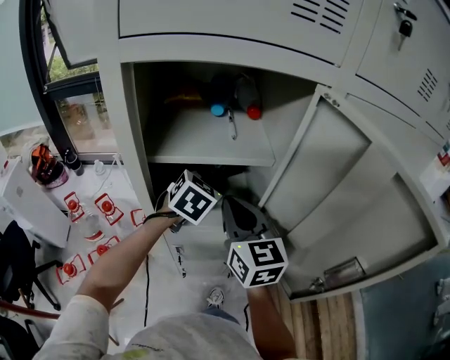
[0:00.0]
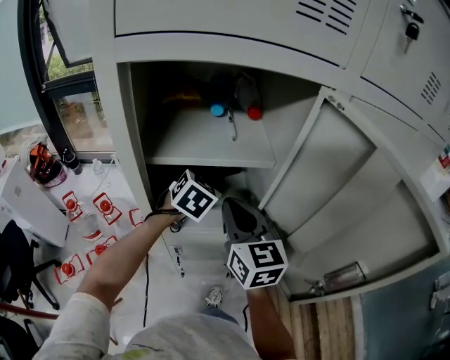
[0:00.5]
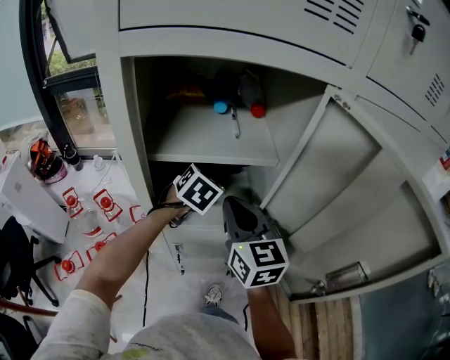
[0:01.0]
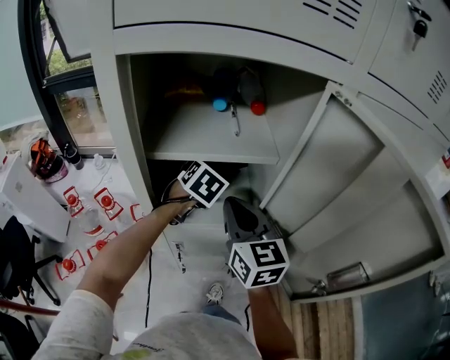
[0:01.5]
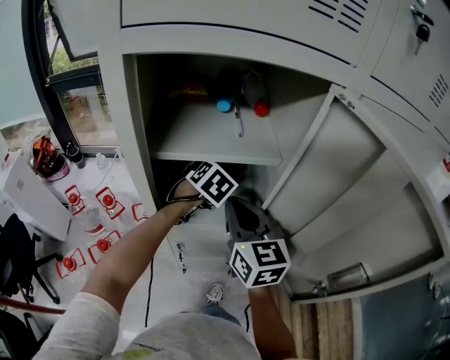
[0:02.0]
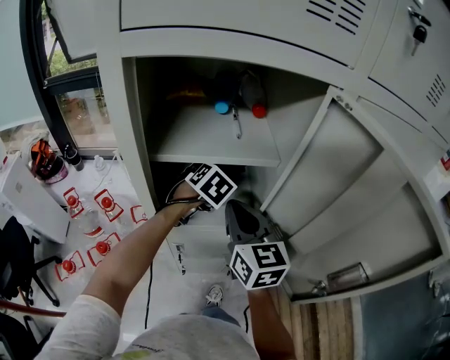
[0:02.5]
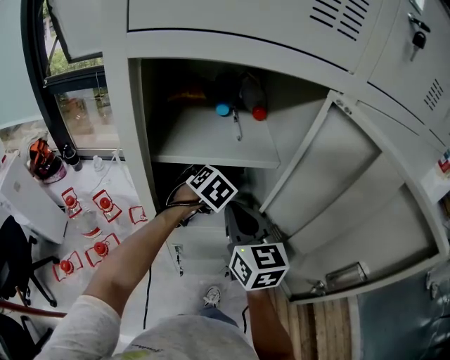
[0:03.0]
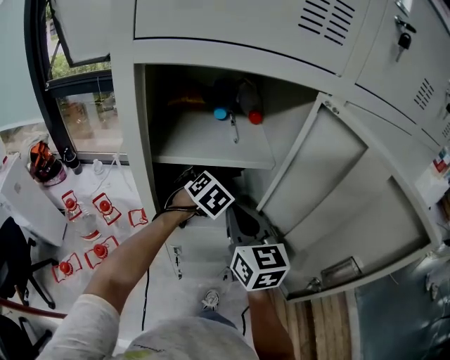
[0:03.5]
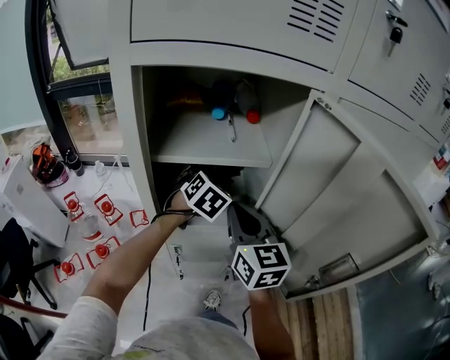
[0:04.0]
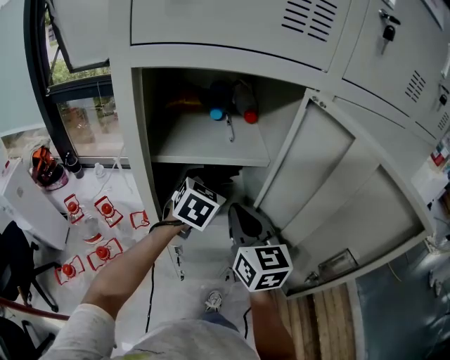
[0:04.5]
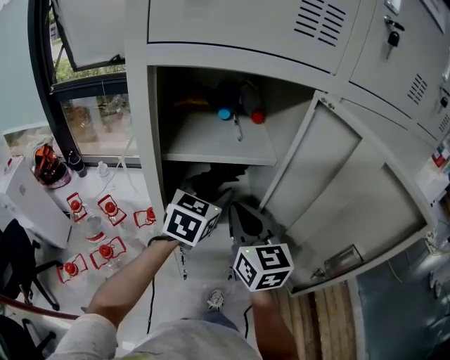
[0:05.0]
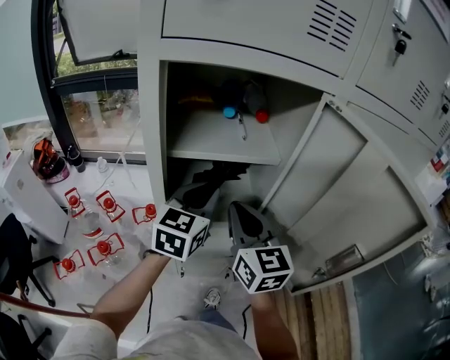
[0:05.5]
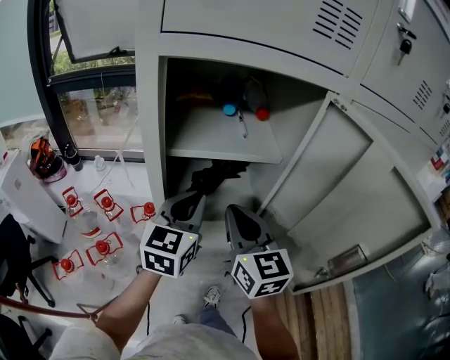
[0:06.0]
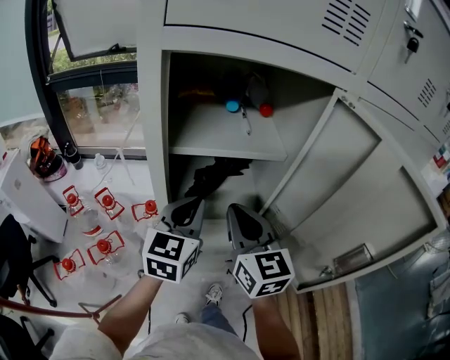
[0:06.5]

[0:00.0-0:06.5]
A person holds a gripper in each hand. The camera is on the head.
0:00.0 to 0:02.0: The left gripper travels downward by some 5 cm.
0:02.0 to 0:04.5: The left gripper travels upward and backward by roughly 10 cm, and rotates approximately 20 degrees.
0:04.5 to 0:06.5: The left gripper shifts about 15 cm backward and to the left, swivels about 20 degrees, and closes up.

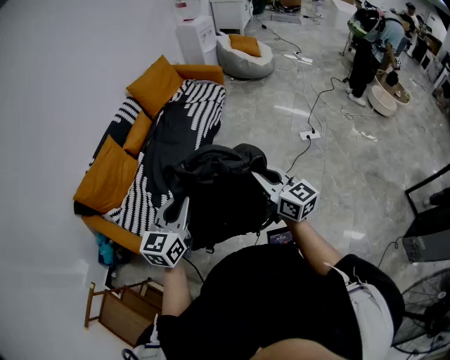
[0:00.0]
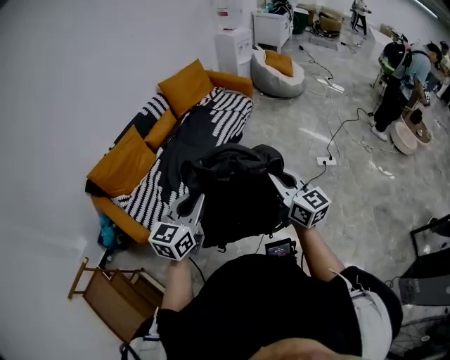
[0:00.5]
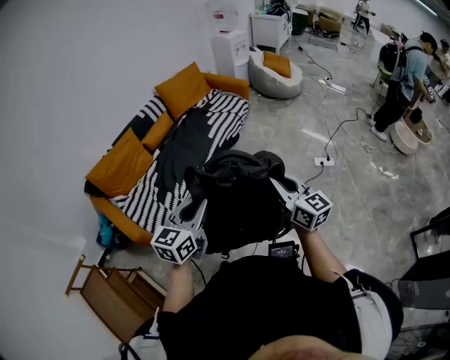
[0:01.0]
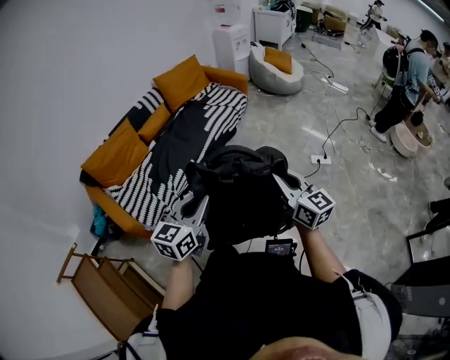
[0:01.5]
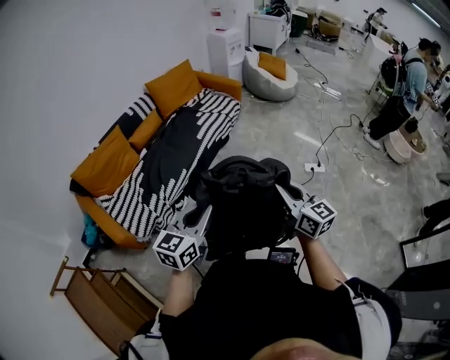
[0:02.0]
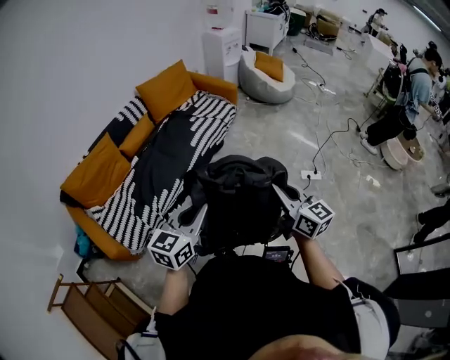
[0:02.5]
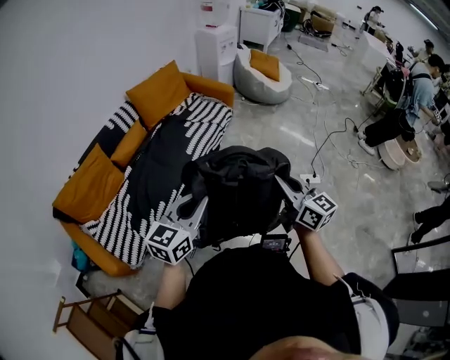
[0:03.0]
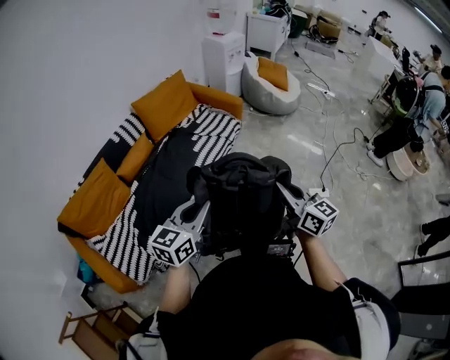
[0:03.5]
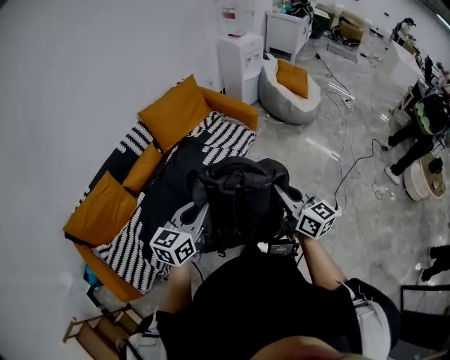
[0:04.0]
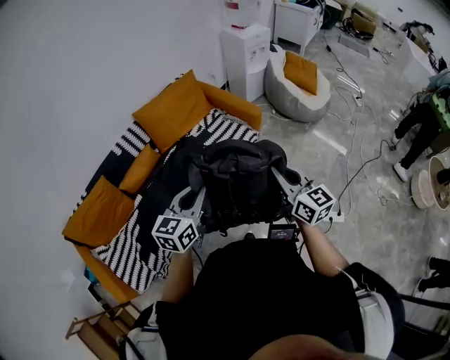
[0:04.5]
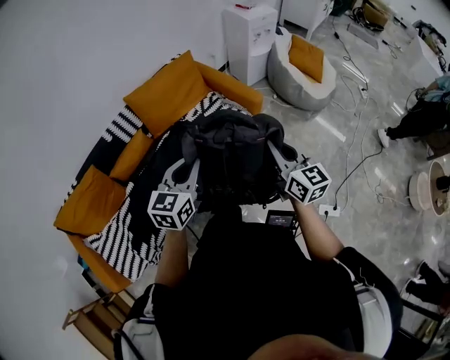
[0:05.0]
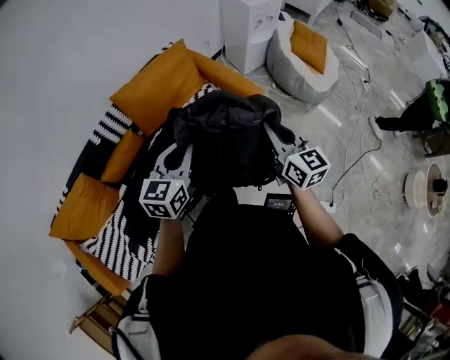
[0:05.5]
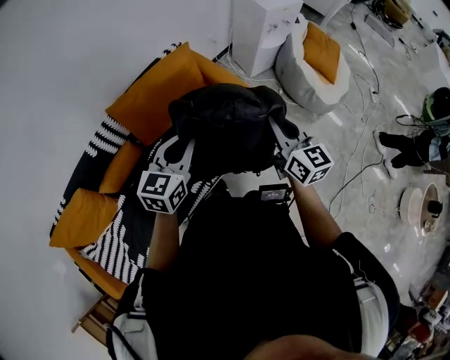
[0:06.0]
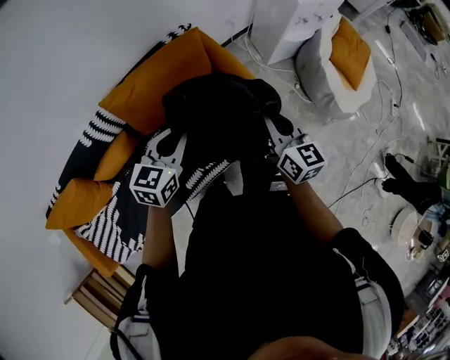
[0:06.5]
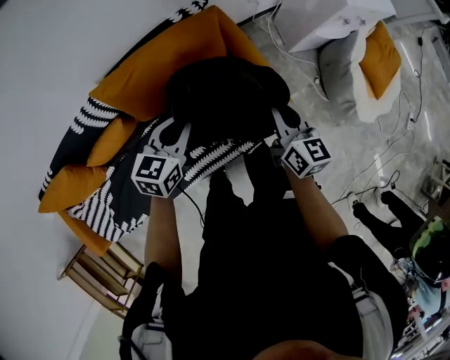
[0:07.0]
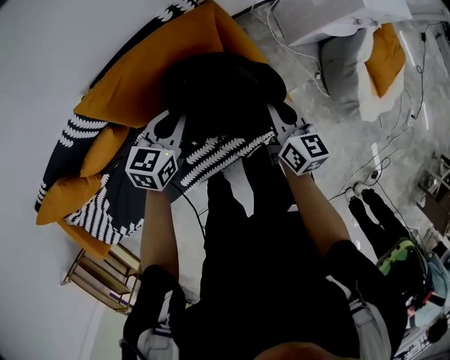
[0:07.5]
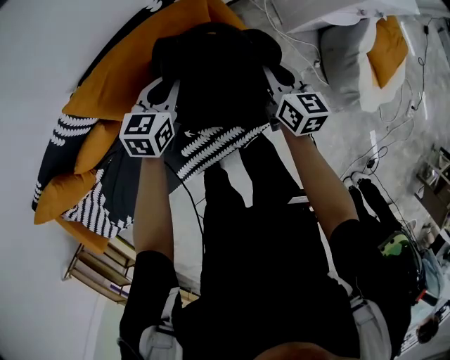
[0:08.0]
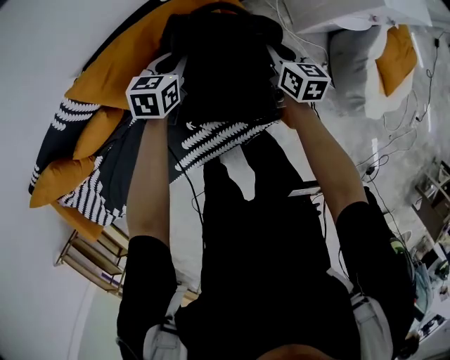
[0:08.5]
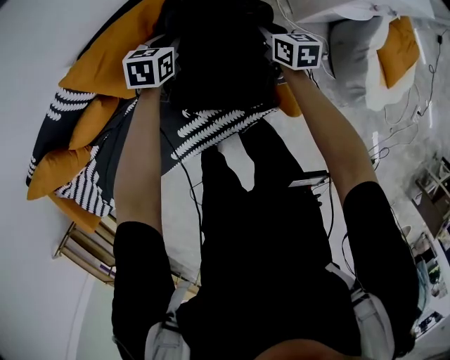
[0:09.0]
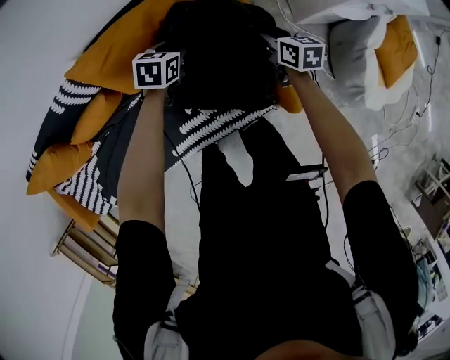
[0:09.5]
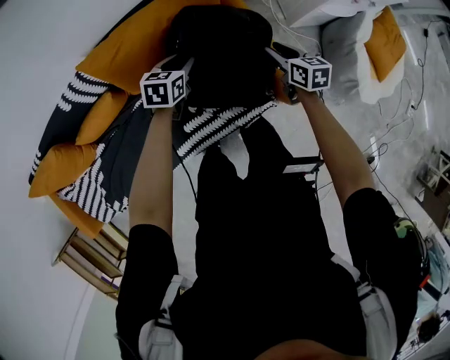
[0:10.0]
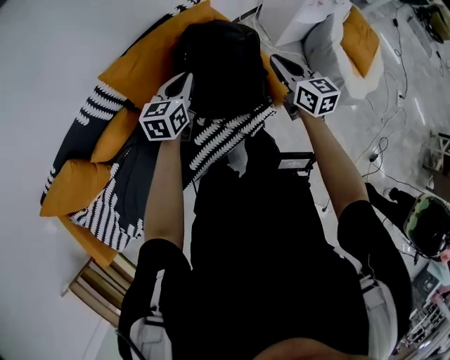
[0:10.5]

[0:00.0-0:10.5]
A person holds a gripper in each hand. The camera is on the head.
0:00.0 to 0:02.0: The grippers both shift to the right by about 15 cm.
0:02.0 to 0:04.0: Both grippers are carried forward, about 40 cm.
0:04.0 to 0:06.5: The pair of grippers is taken forward, about 60 cm. The left gripper turns by roughly 20 degrees.
0:06.5 to 0:08.5: The two grippers go some 35 cm forward and downward. The right gripper swivels roughly 20 degrees, while the left gripper rotates about 20 degrees.
0:08.5 to 0:10.5: The grippers both shift backward and upward by roughly 25 cm. The right gripper opens, then closes again; the left gripper opens, then closes once more.

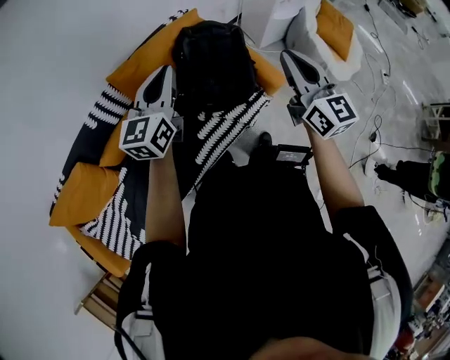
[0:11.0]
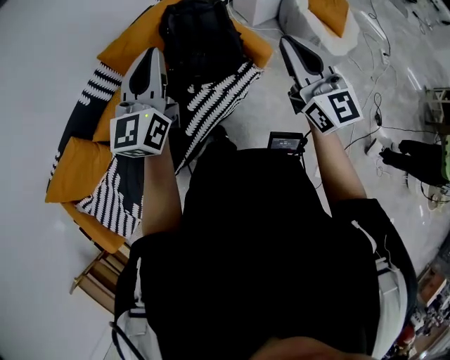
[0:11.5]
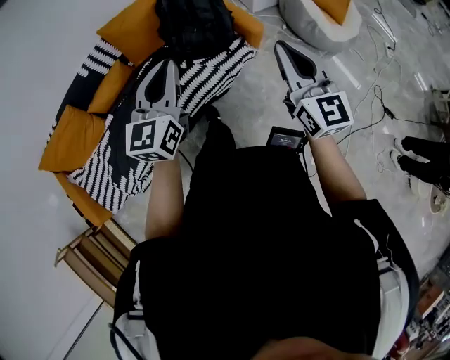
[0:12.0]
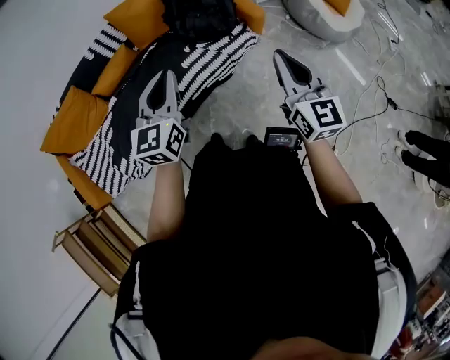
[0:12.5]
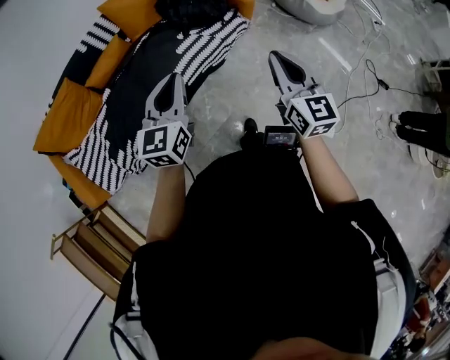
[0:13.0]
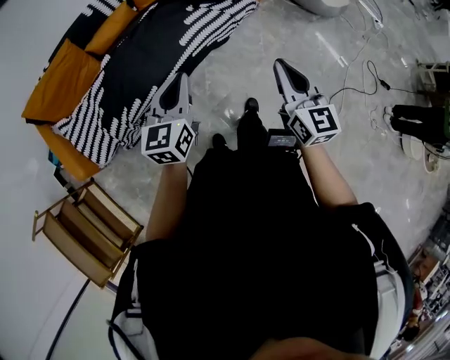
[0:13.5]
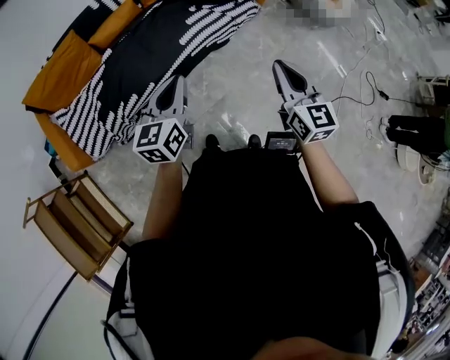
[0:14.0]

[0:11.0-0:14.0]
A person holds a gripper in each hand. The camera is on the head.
0:11.0 to 0:12.5: The two grippers go some 35 cm backward.
0:12.5 to 0:14.0: Both grippers travel together backward and to the left, about 25 cm.

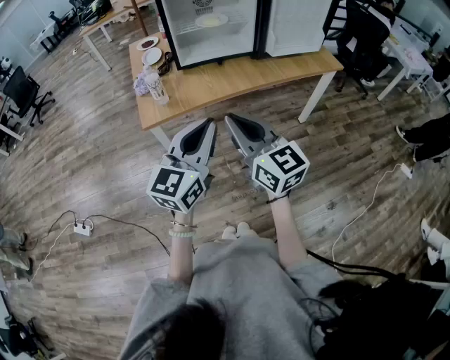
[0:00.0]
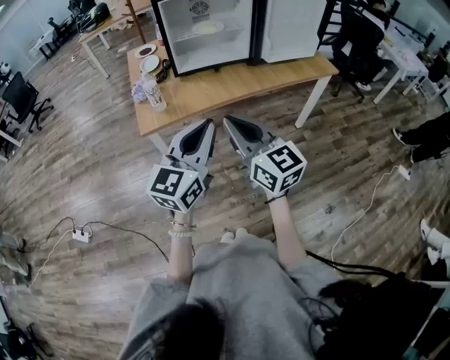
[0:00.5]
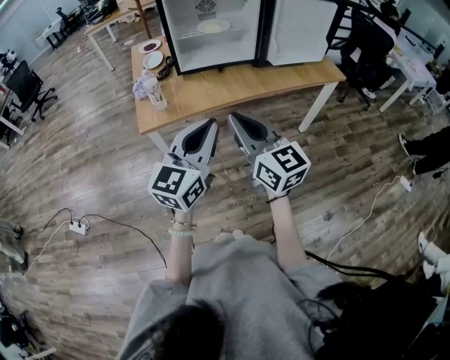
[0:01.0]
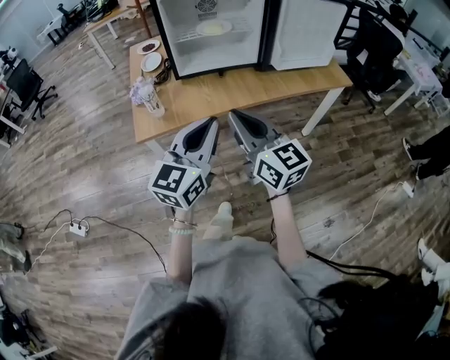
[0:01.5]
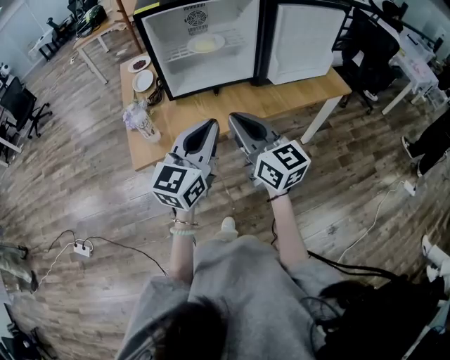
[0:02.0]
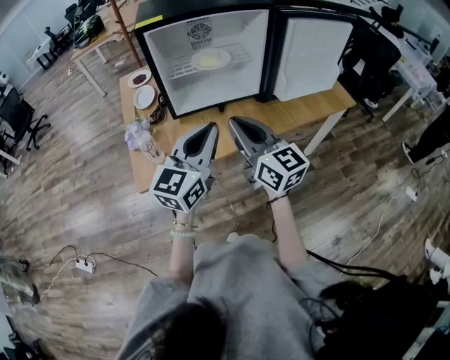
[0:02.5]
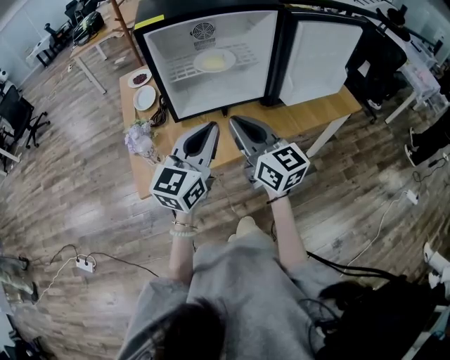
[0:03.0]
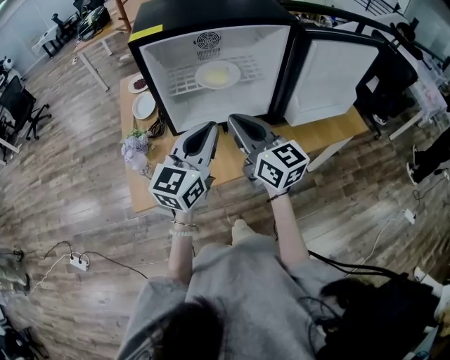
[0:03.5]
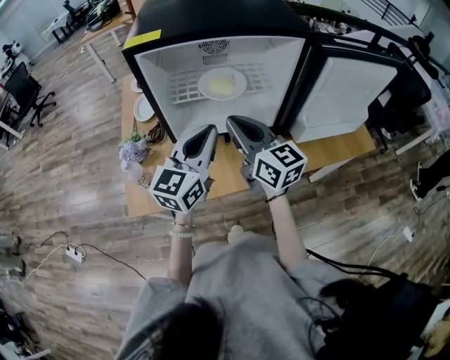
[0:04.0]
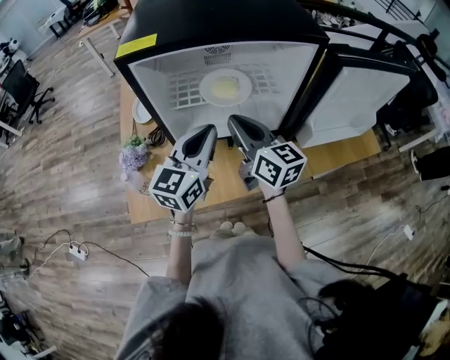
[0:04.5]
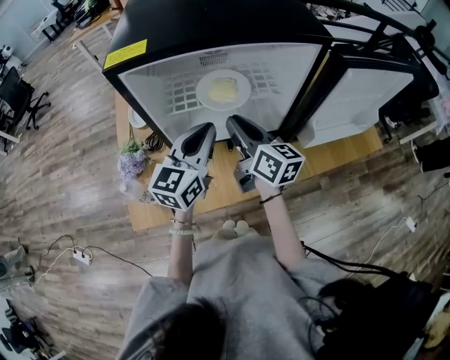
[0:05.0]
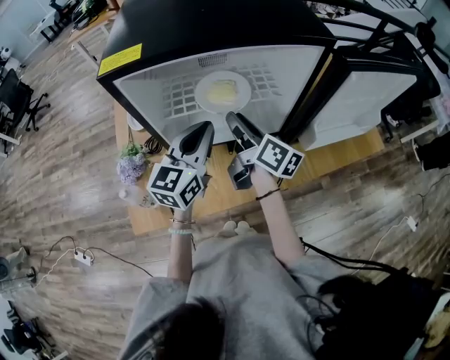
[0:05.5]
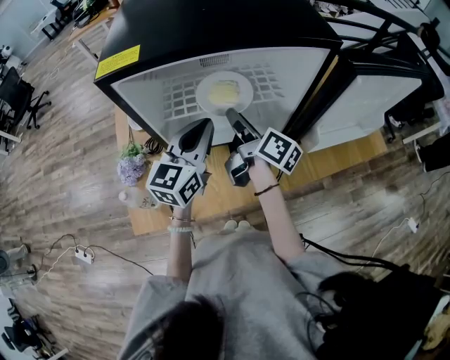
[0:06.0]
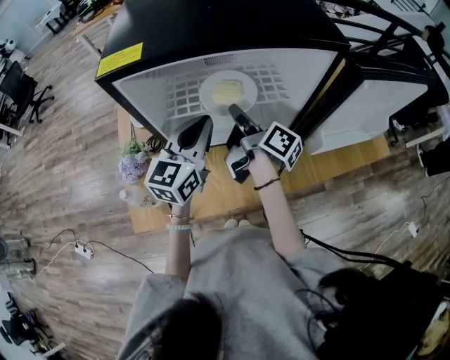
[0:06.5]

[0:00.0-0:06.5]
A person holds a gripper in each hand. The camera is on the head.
0:00.0 to 0:02.0: The two grippers go roughly 15 cm forward.
0:02.0 to 0:04.5: Both grippers move forward, some 30 cm.
0:04.5 to 0:06.5: The right gripper travels forward and downward by approximately 10 cm, and rolls clockwise, seen from behind, by approximately 50 degrees; the left gripper goes approximately 5 cm forward.
